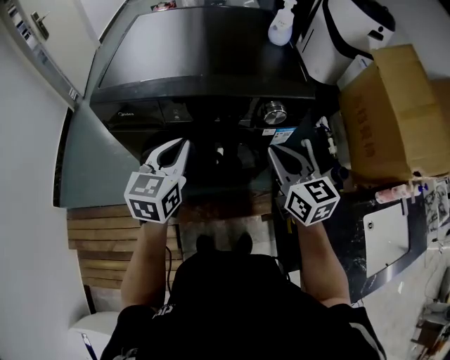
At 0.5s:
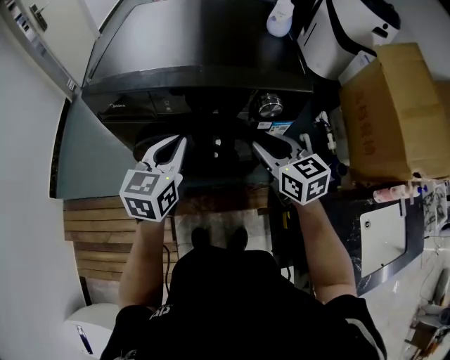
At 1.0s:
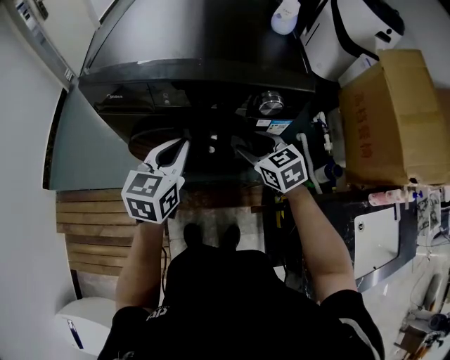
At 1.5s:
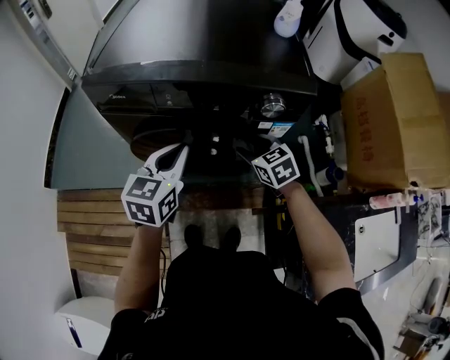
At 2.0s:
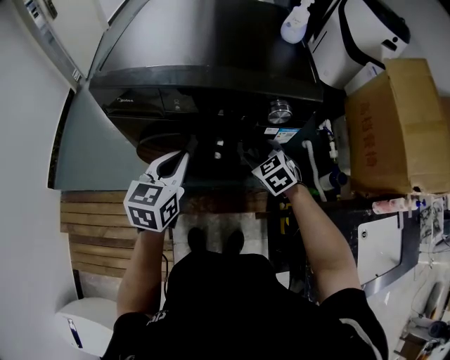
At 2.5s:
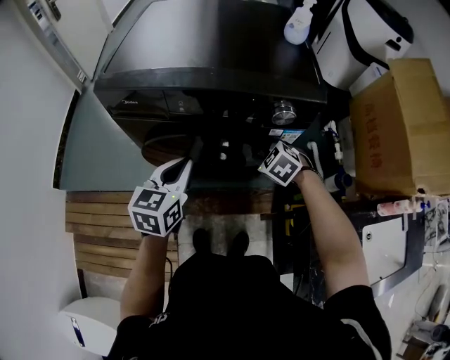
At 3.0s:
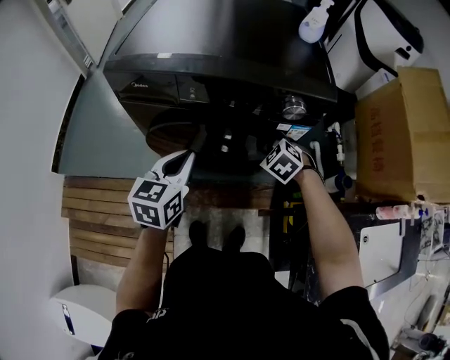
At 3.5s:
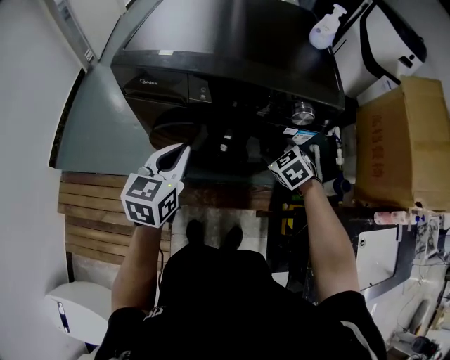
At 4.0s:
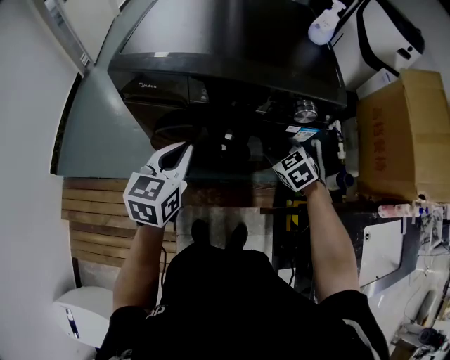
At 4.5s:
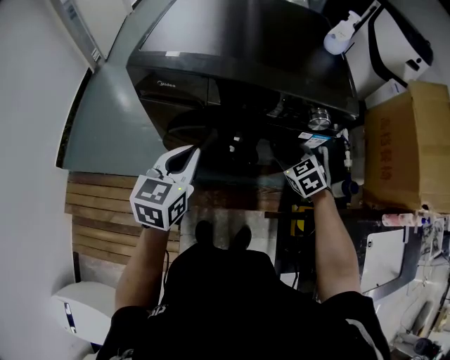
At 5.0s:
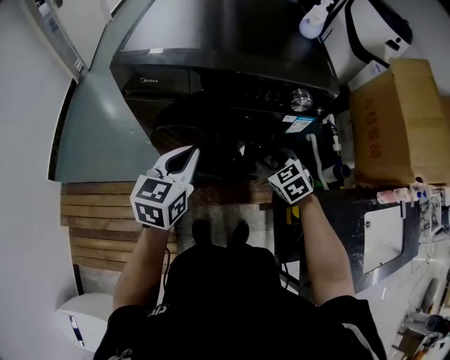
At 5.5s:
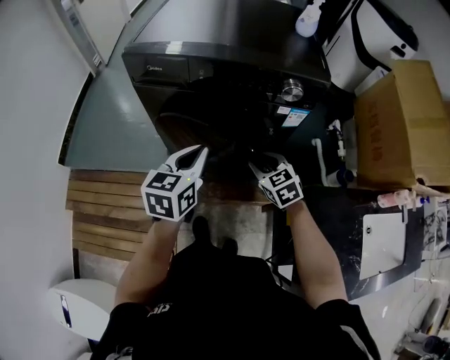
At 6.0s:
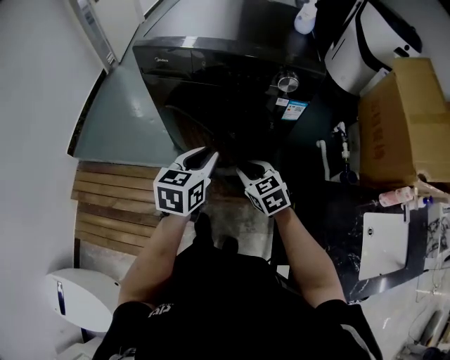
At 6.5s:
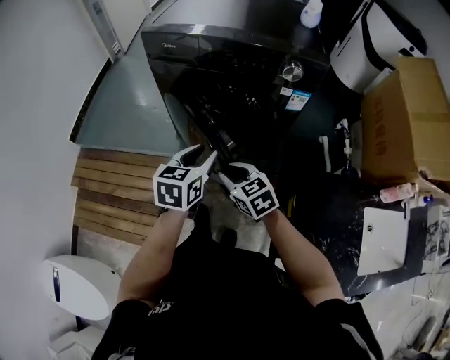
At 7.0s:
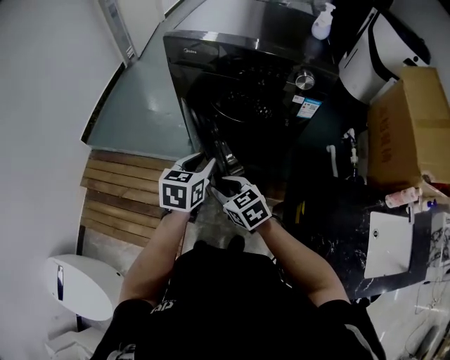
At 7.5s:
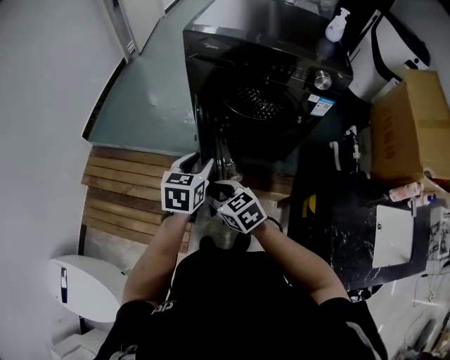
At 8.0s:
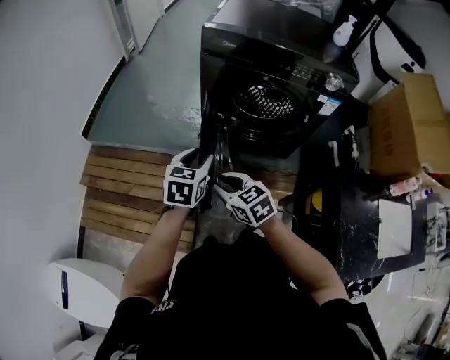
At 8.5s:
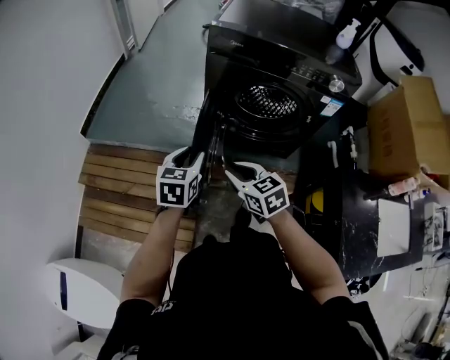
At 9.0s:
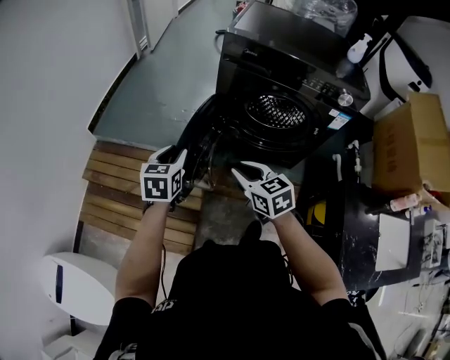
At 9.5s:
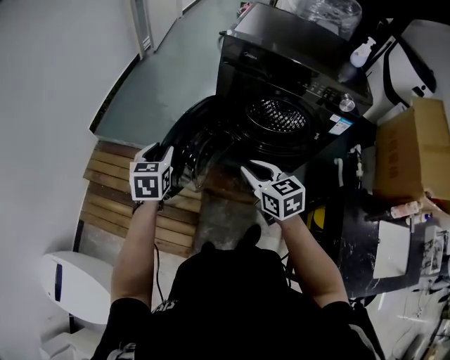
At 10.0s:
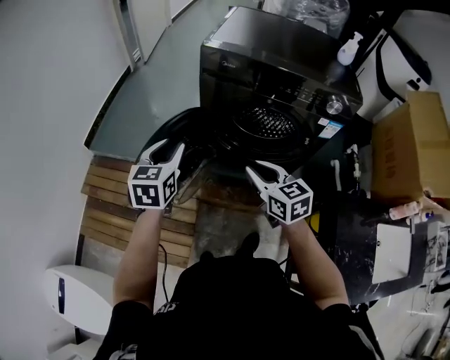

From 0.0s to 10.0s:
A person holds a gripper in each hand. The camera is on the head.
From 0.0s to 2.0s: The left gripper changes place by roughly 5 cm; the right gripper shifts roughly 15 cm downward, tilts its fingers approximately 30 degrees downward, and opens its fingers.
From 4.0s to 6.0s: The left gripper heads backward and to the right, covering some 15 cm, and opens up, while the right gripper heads backward, covering approximately 20 cm.
From 6.0s to 8.0s: Both grippers travel together to the left, roughly 25 cm.
From 8.0s to 10.0s: The left gripper moves forward and upward, roughly 10 cm, and goes to the left and returns, some 15 cm each way. Meanwhile the right gripper moves to the right, upward and forward, approximately 15 cm.

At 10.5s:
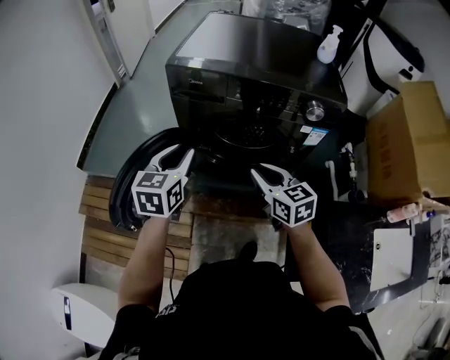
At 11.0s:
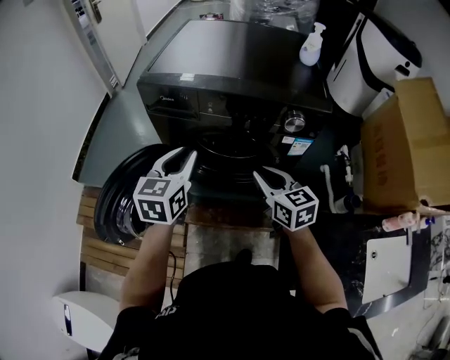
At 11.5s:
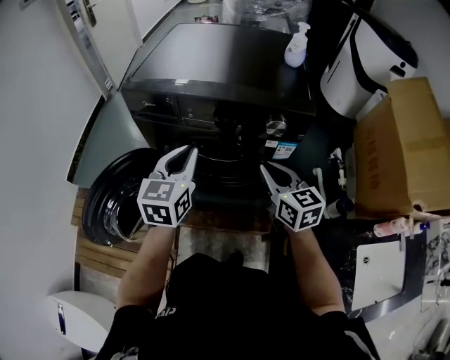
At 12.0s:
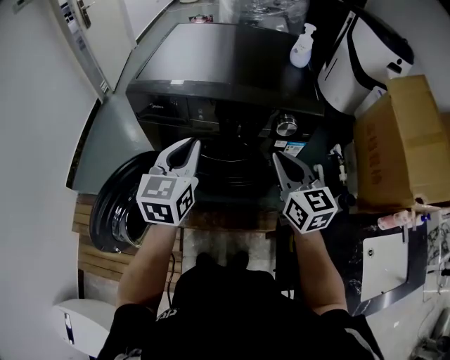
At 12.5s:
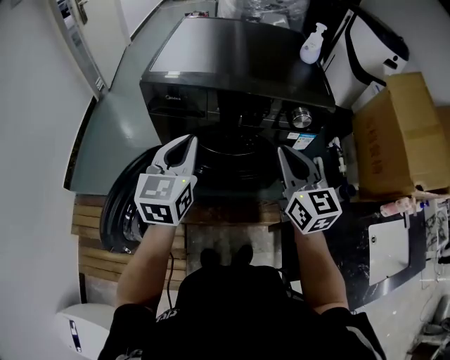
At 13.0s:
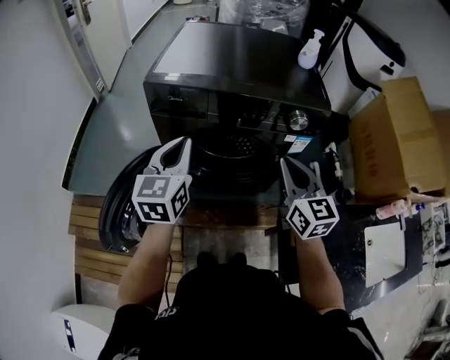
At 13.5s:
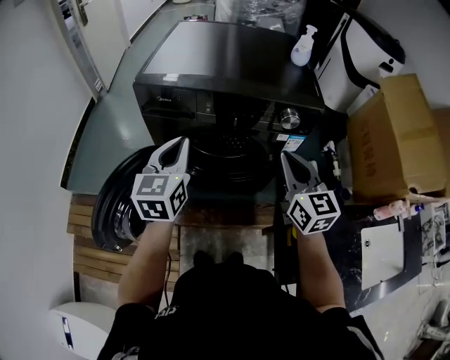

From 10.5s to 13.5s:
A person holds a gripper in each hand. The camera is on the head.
From 10.5s to 12.0s: The grippers both shift to the right, upward and forward by about 15 cm. The left gripper closes up, while the right gripper changes its angle by approximately 20 degrees.
From 12.0s to 13.5s: The left gripper moves to the left, approximately 5 cm.

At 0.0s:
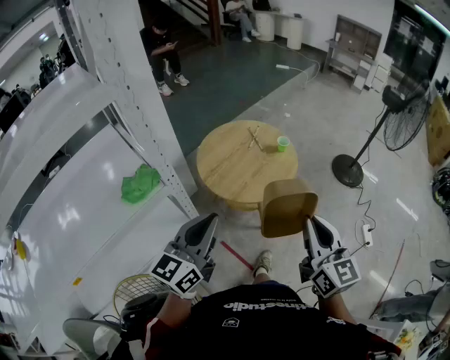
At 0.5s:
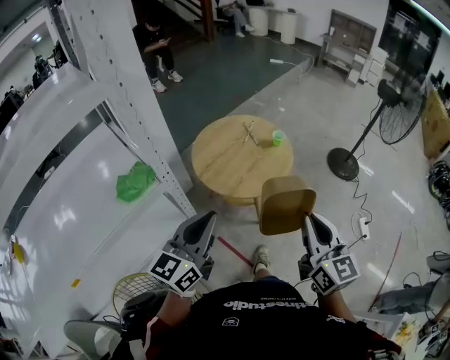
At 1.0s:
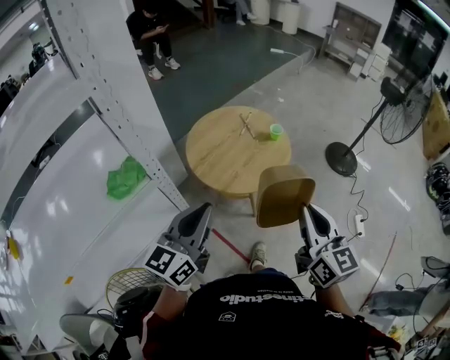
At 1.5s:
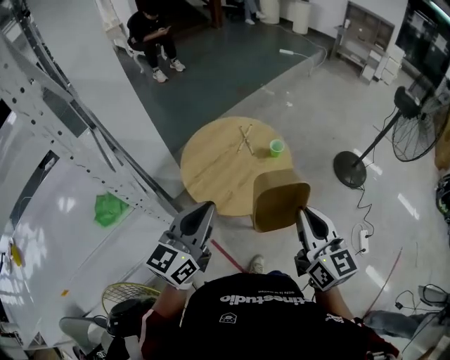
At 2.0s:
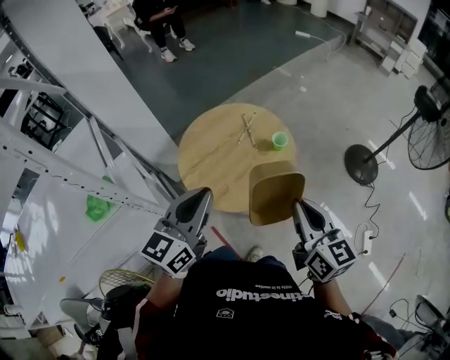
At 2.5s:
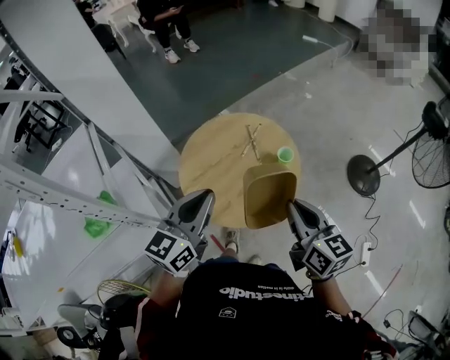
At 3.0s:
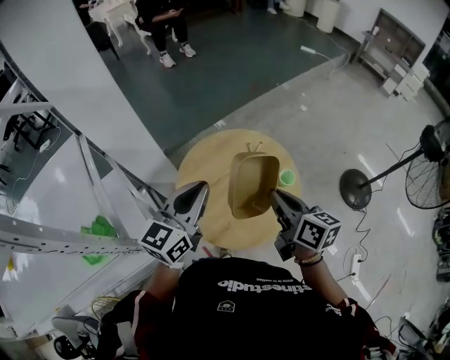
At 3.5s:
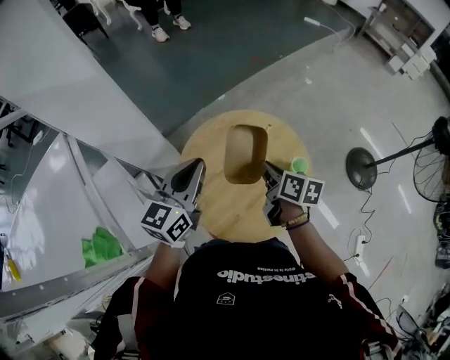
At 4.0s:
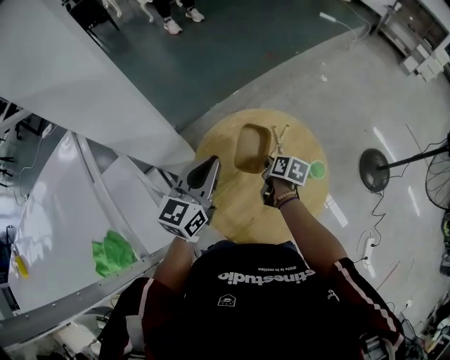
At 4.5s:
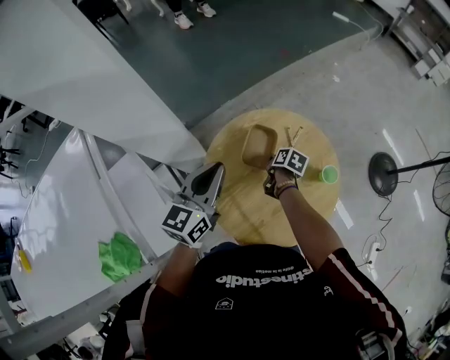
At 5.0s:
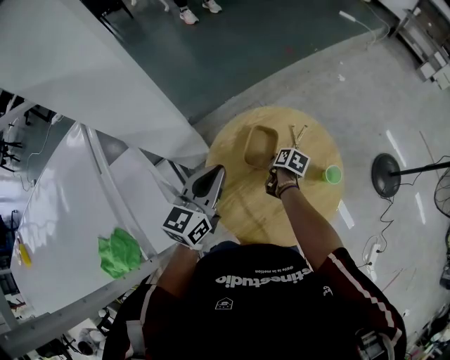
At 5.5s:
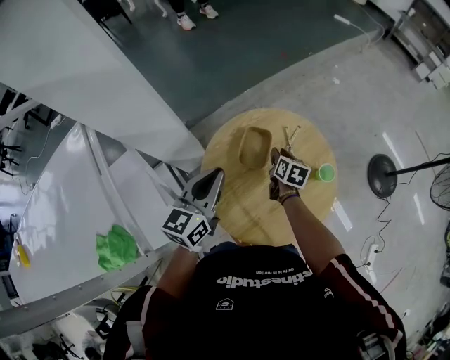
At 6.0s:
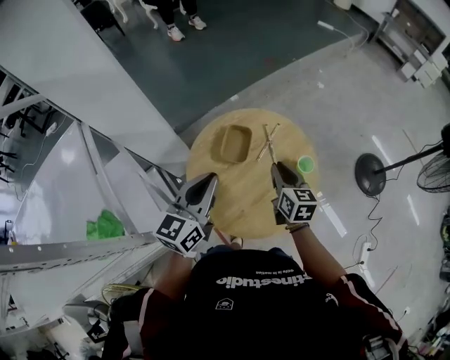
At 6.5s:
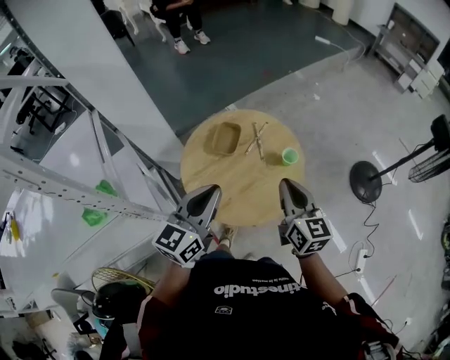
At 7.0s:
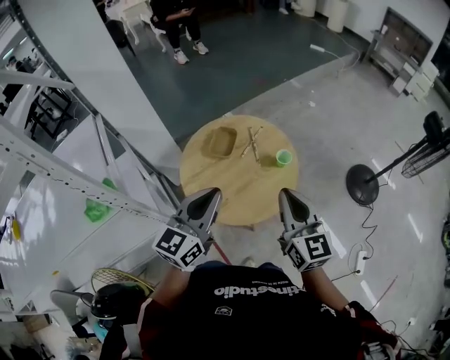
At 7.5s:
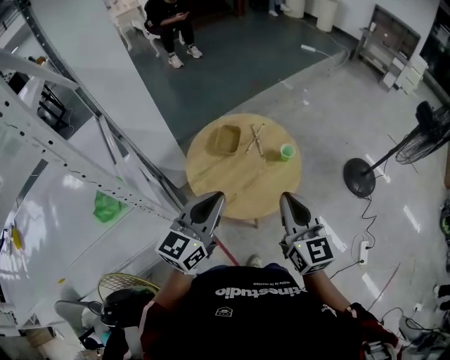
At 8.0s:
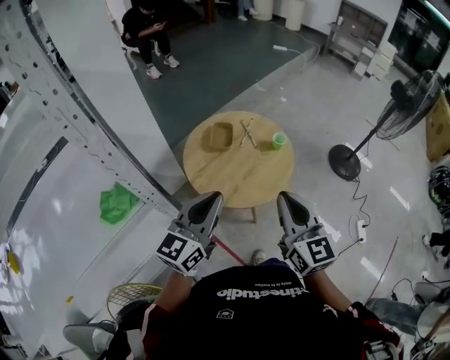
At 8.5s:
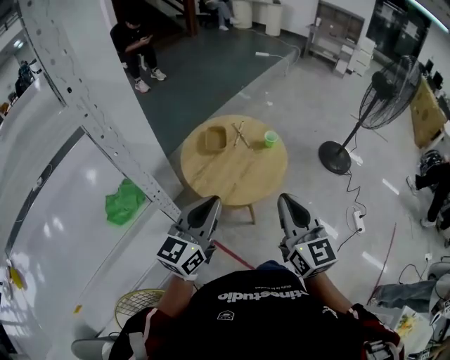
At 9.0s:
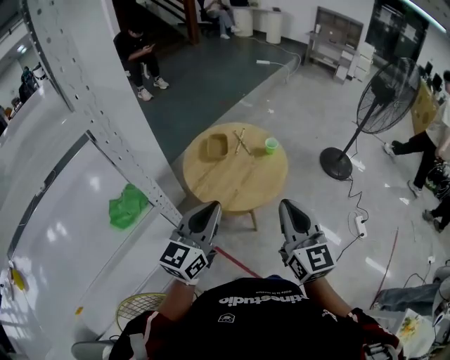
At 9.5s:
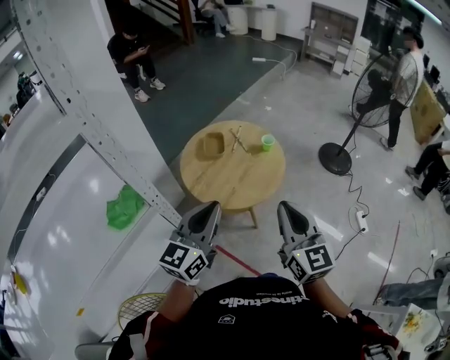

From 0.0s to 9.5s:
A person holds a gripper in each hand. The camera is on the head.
From 0.0s to 2.0s: The right gripper shifts about 30 cm forward. The left gripper is displaced forward and to the right by roughly 35 cm.
From 2.0s to 4.0s: The right gripper travels forward, downward and to the left by some 60 cm, and angles its fingers downward, by about 40 degrees. The left gripper is displaced forward and to the left by about 40 cm.
From 4.0s to 5.5s: The right gripper travels downward and back again, roughly 10 cm each way, and opens up.
From 5.5s to 7.5s: The right gripper travels backward and upward by about 60 cm, angles its fingers upward, by roughly 40 degrees, and closes. The left gripper shifts roughly 40 cm backward, upward and to the right.
From 7.5s to 9.5s: Both grippers travel together backward, roughly 20 cm.

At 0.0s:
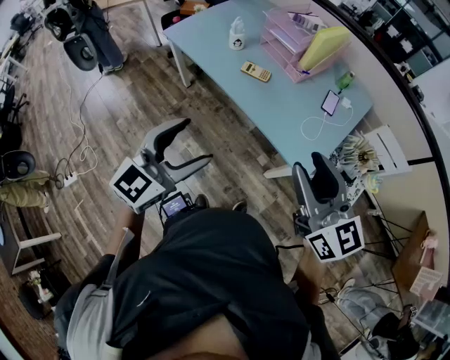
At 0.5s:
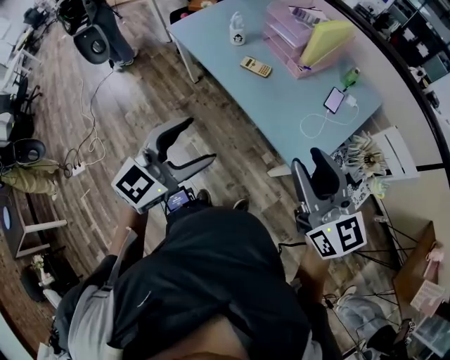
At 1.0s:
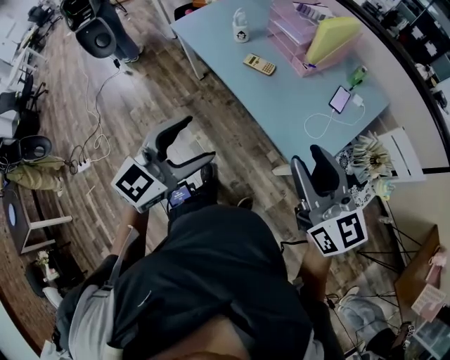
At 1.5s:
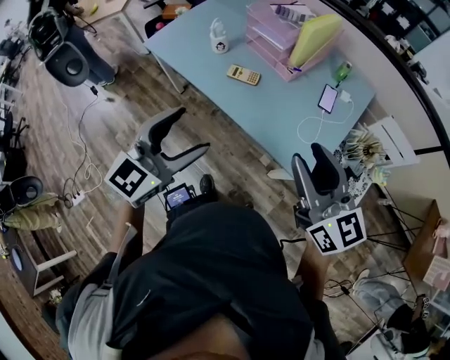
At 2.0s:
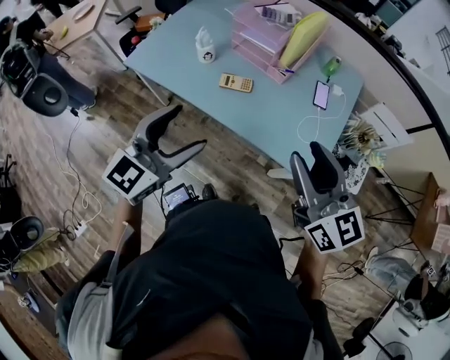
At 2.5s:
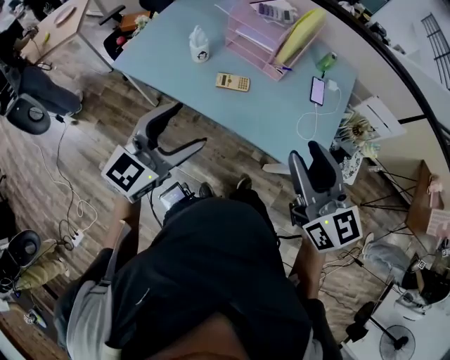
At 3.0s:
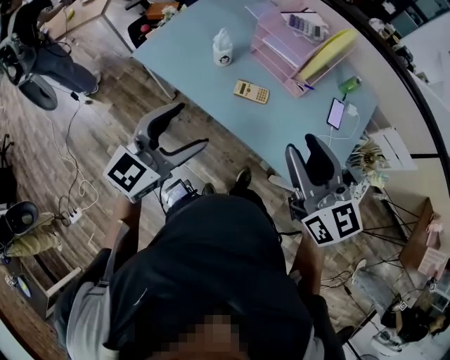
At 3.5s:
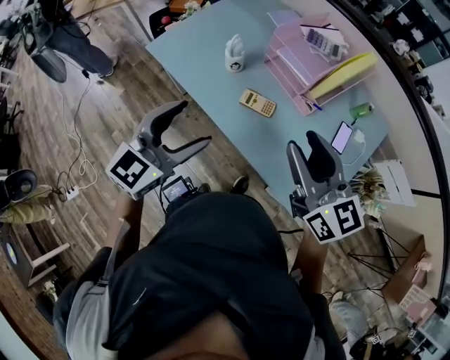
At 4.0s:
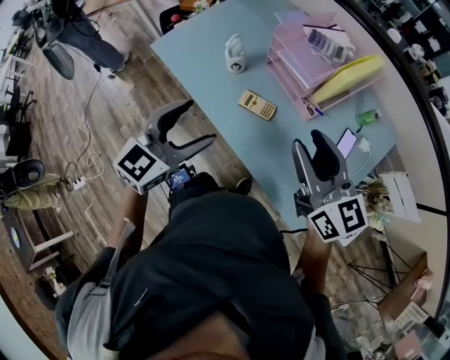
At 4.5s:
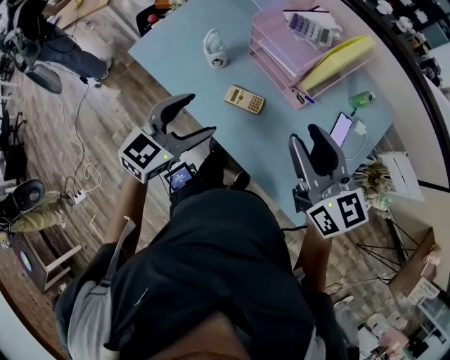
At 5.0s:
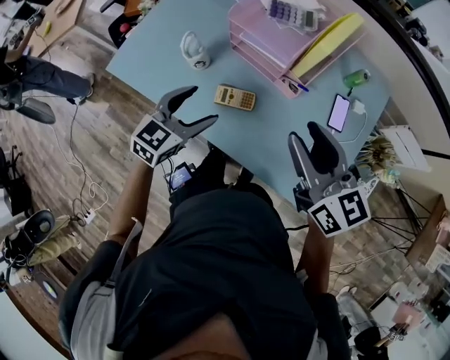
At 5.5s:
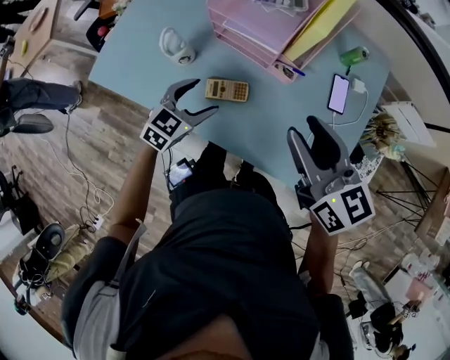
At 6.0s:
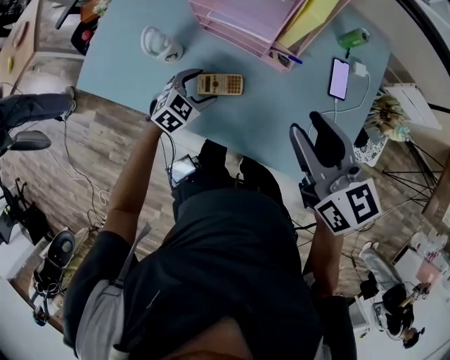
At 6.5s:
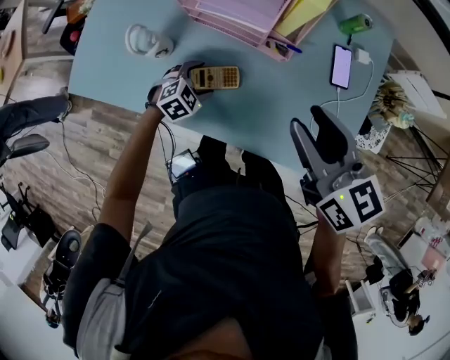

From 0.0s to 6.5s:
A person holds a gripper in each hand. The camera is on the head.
From 0.0s to 2.0s: The grippers both shift forward by roughly 15 cm.
From 2.0s to 4.5s: The right gripper is displaced forward by approximately 25 cm; the left gripper moves forward and downward, about 20 cm.
From 4.5s to 6.5s: The right gripper heads downward, covering roughly 10 cm, and rotates about 30 degrees. The left gripper is displaced downward by about 35 cm, and points its fingers approximately 40 degrees further downward.
